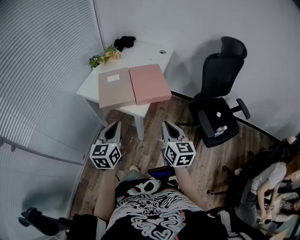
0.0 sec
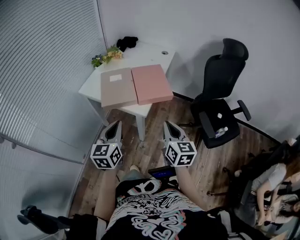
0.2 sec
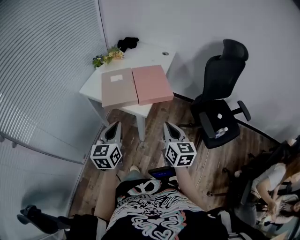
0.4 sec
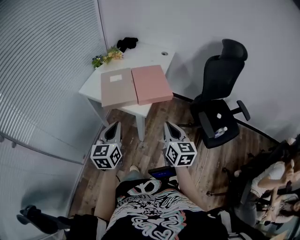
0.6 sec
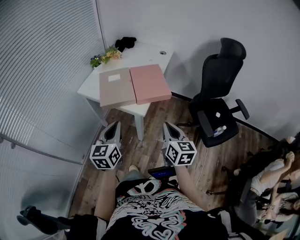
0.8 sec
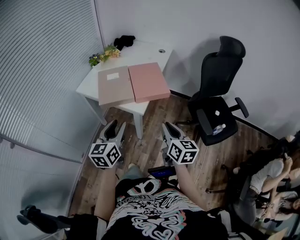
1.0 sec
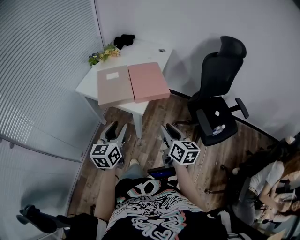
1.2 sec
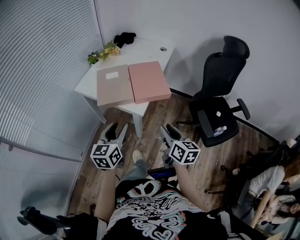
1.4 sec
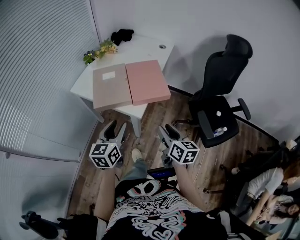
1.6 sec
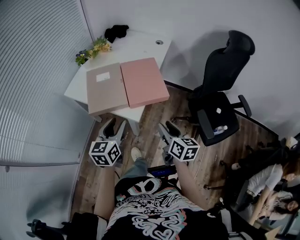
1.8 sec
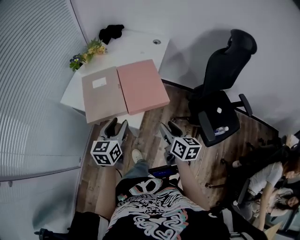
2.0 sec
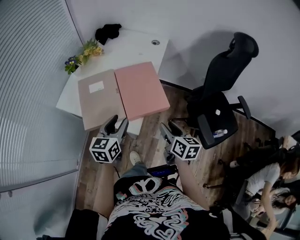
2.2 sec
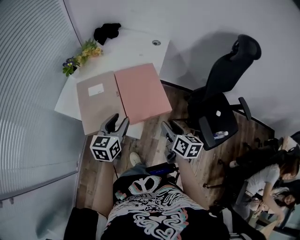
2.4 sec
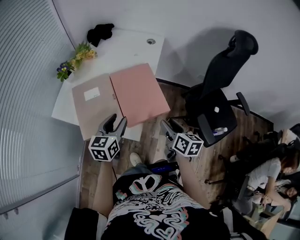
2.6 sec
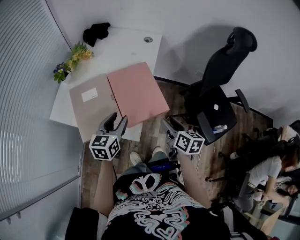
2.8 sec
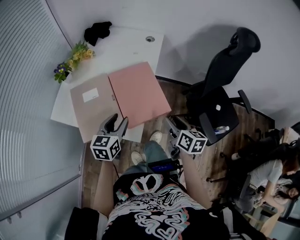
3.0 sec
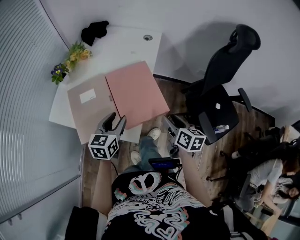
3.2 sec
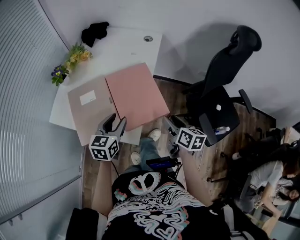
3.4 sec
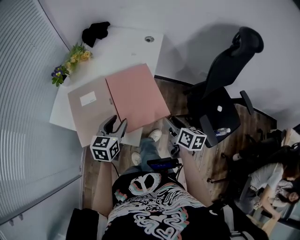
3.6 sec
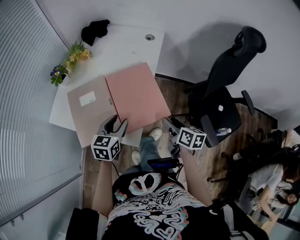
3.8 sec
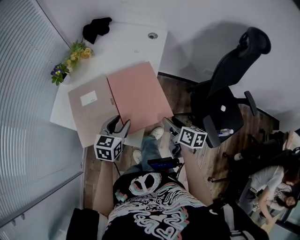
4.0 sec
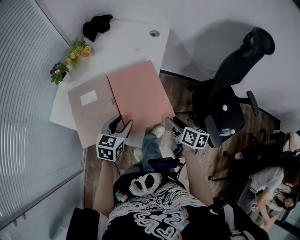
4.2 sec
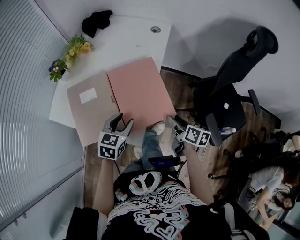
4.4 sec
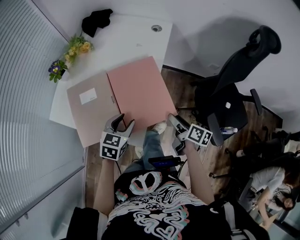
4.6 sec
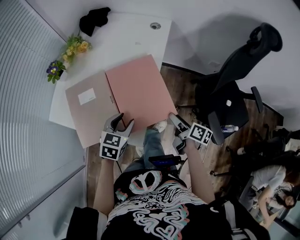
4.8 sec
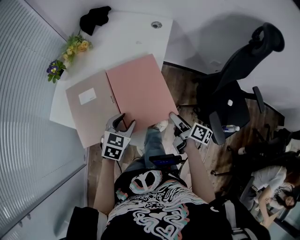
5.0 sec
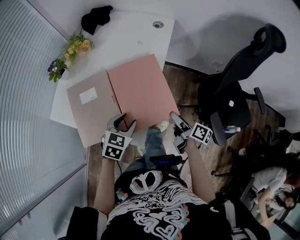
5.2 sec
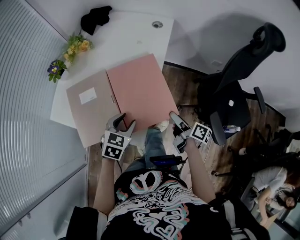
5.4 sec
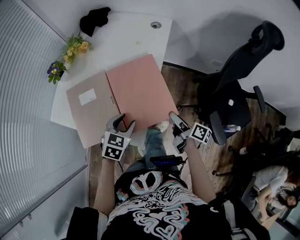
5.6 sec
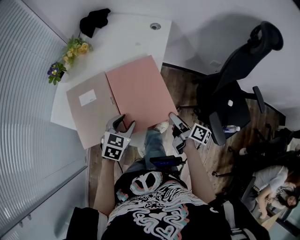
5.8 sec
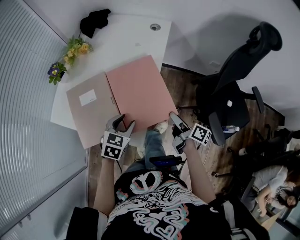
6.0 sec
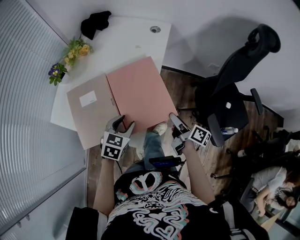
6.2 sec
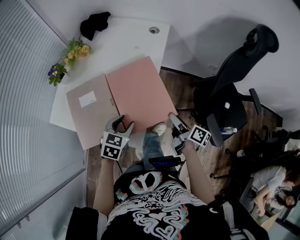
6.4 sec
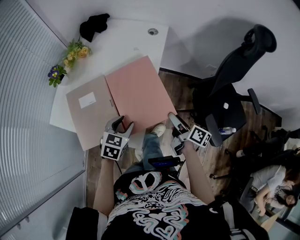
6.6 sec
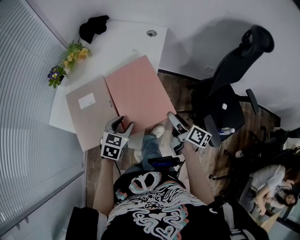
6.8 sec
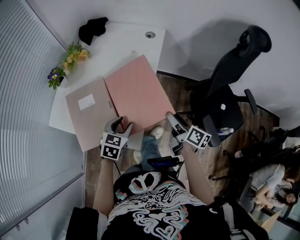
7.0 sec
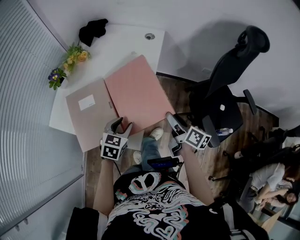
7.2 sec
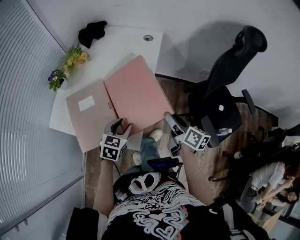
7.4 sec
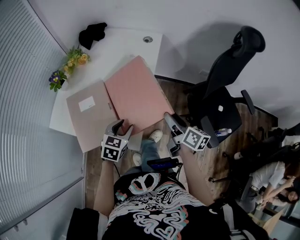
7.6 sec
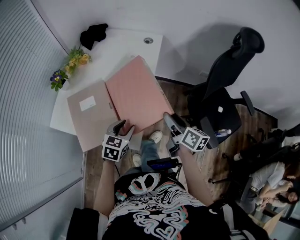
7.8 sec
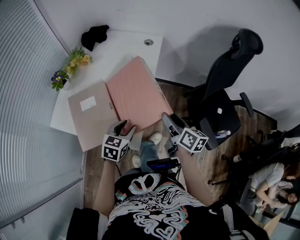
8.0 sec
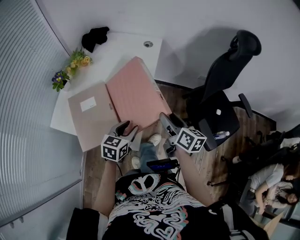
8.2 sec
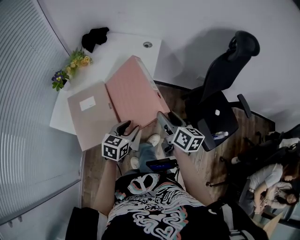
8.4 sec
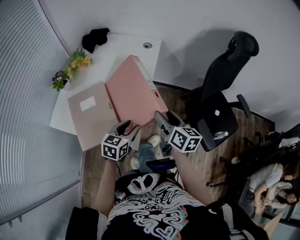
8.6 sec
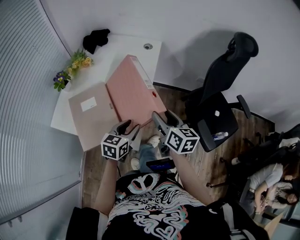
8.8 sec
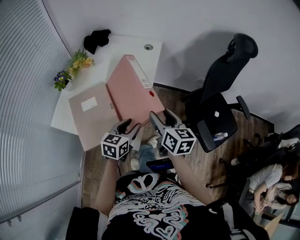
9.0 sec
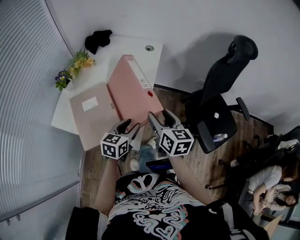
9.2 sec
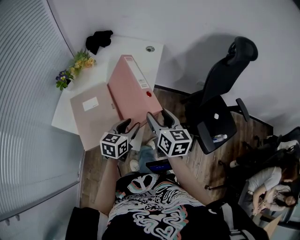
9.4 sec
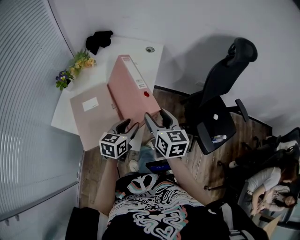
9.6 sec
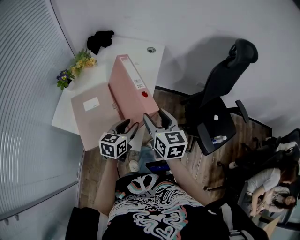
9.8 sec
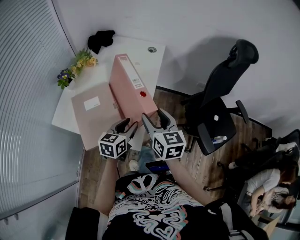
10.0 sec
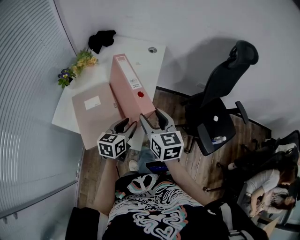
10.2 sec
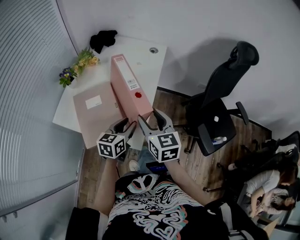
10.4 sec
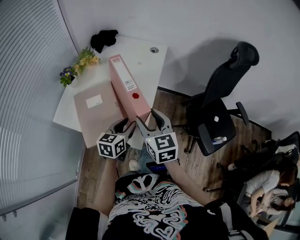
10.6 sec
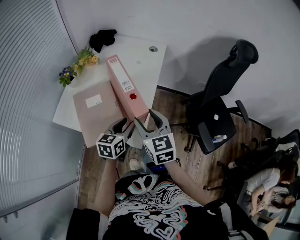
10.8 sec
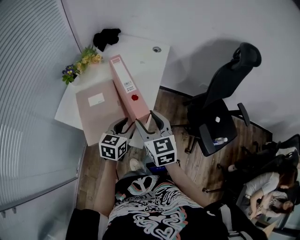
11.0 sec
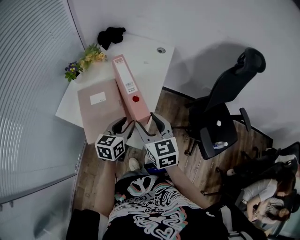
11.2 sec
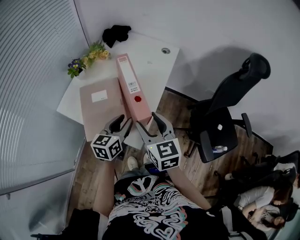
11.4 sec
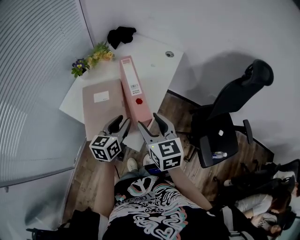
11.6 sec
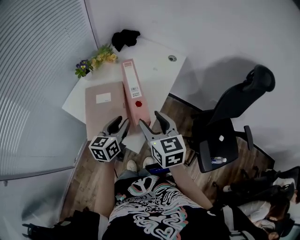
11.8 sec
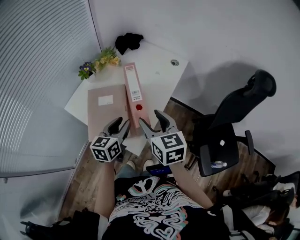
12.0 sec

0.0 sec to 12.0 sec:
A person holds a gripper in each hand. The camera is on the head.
0.0 sec to 1.6 sec: The right gripper goes about 5 cm downward, and opens up. Meanwhile the left gripper moves some 5 cm, and opens.
1.6 sec to 3.0 sec: Both grippers move forward, some 20 cm.
3.0 sec to 4.4 sec: The right gripper travels downward by about 10 cm. Meanwhile the left gripper is displaced downward by some 5 cm.
4.4 sec to 6.0 sec: The right gripper changes its angle by about 20 degrees.
6.0 sec to 7.6 sec: The right gripper moves upward, roughly 10 cm, and turns by roughly 20 degrees.
7.6 sec to 9.0 sec: The left gripper changes place by some 5 cm. The right gripper heads upward and to the left, covering about 10 cm, and changes its angle by about 30 degrees.
9.0 sec to 10.4 sec: The right gripper moves to the left, some 5 cm.
10.4 sec to 12.0 sec: The left gripper travels upward by about 5 cm, and rotates approximately 20 degrees. The right gripper ends up approximately 5 cm from where it was.

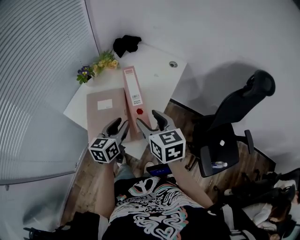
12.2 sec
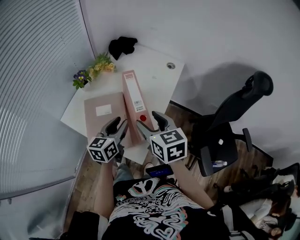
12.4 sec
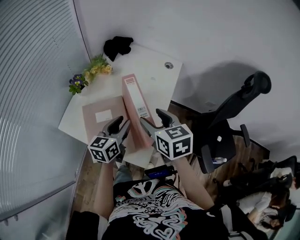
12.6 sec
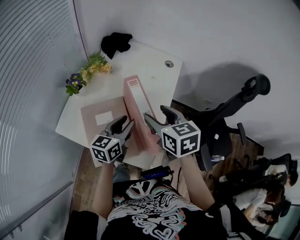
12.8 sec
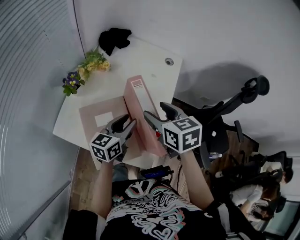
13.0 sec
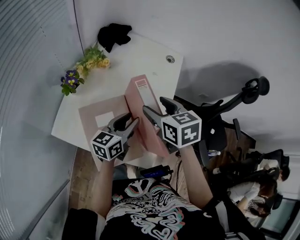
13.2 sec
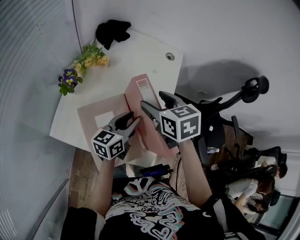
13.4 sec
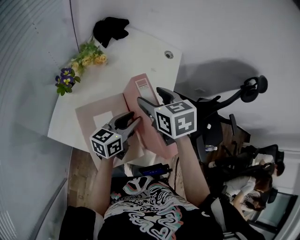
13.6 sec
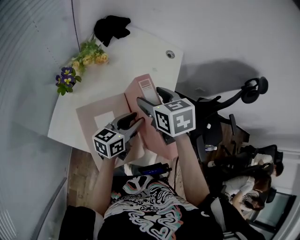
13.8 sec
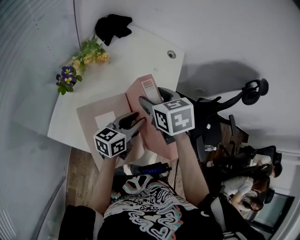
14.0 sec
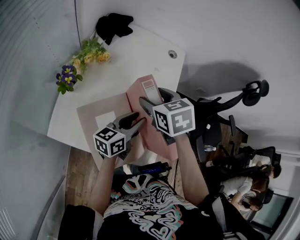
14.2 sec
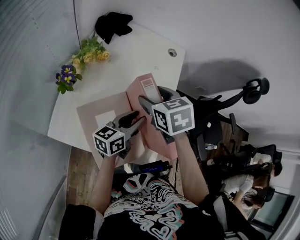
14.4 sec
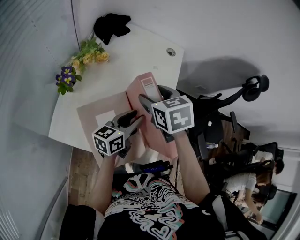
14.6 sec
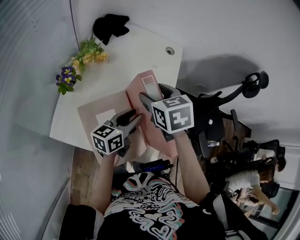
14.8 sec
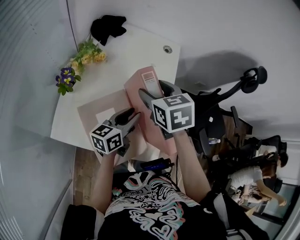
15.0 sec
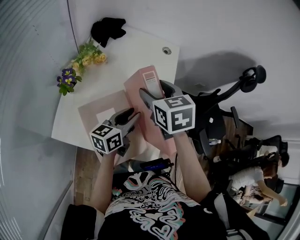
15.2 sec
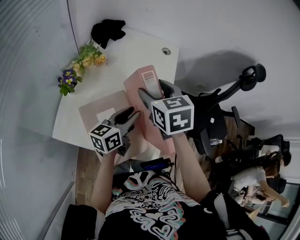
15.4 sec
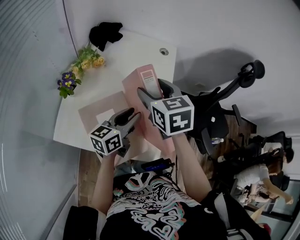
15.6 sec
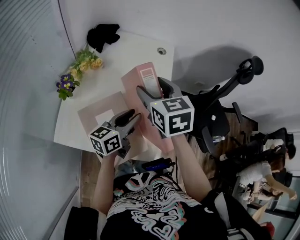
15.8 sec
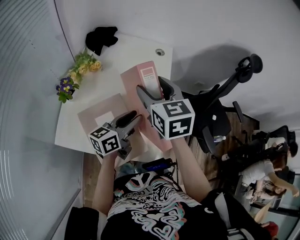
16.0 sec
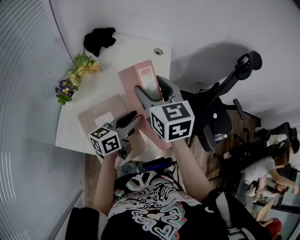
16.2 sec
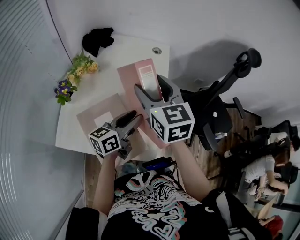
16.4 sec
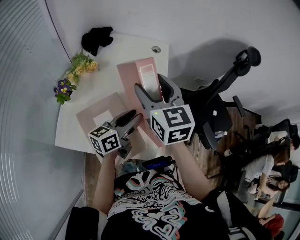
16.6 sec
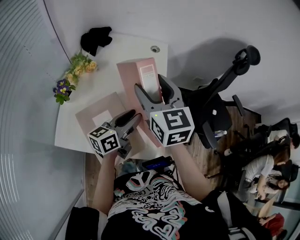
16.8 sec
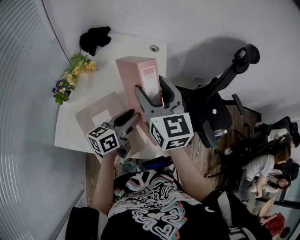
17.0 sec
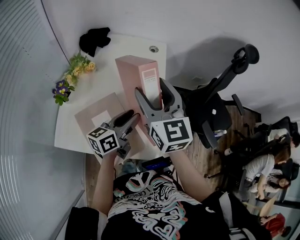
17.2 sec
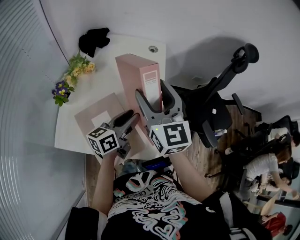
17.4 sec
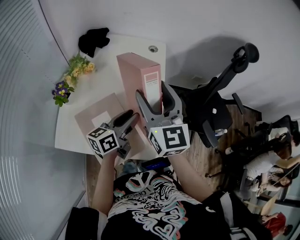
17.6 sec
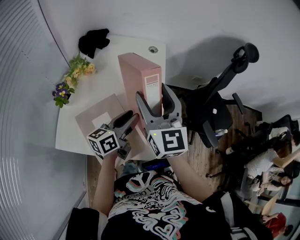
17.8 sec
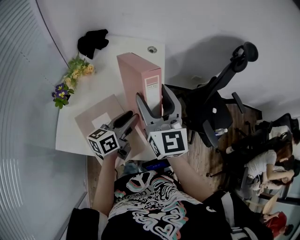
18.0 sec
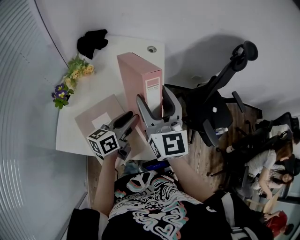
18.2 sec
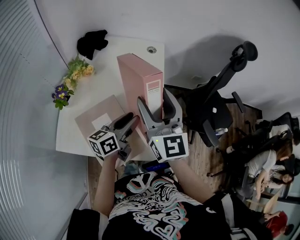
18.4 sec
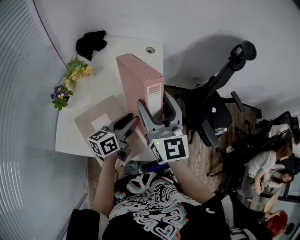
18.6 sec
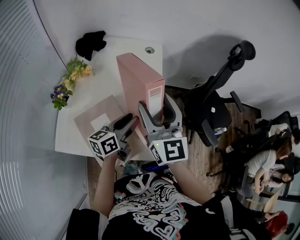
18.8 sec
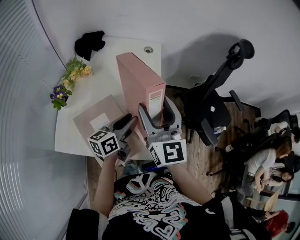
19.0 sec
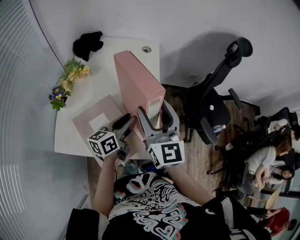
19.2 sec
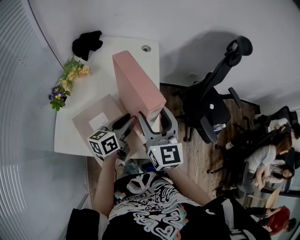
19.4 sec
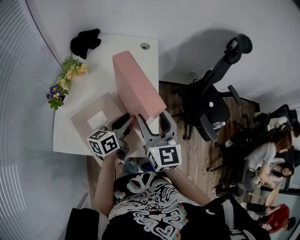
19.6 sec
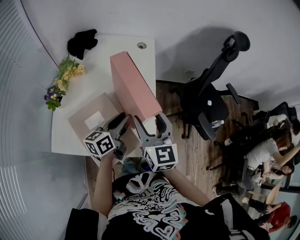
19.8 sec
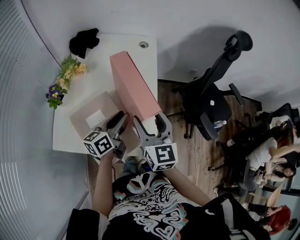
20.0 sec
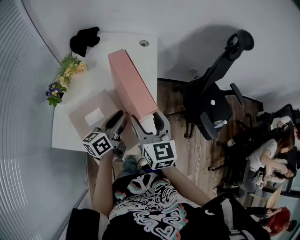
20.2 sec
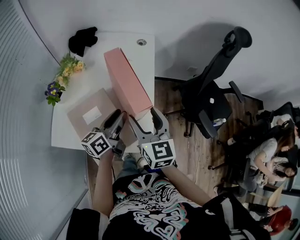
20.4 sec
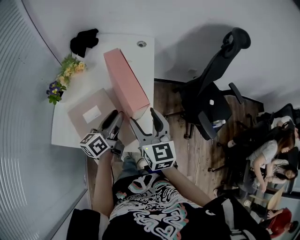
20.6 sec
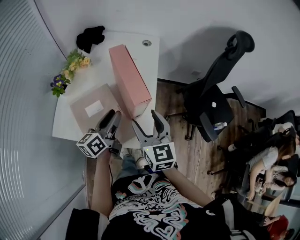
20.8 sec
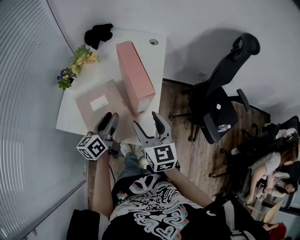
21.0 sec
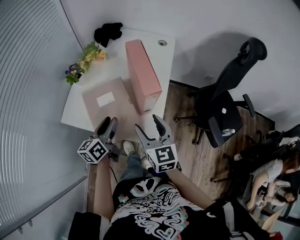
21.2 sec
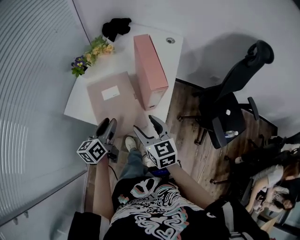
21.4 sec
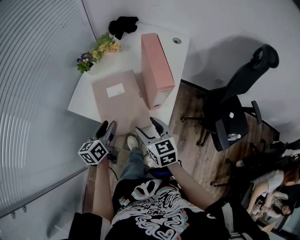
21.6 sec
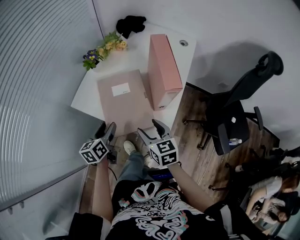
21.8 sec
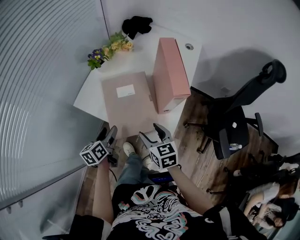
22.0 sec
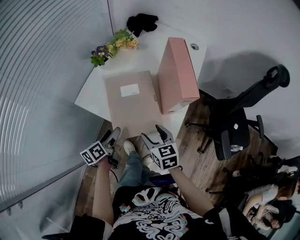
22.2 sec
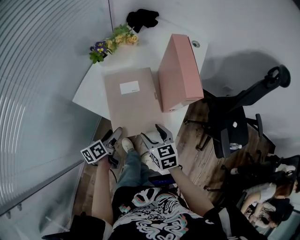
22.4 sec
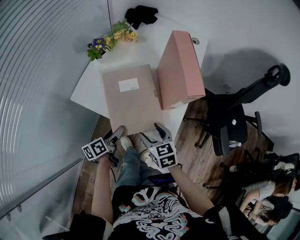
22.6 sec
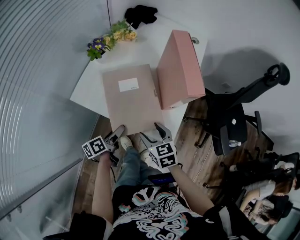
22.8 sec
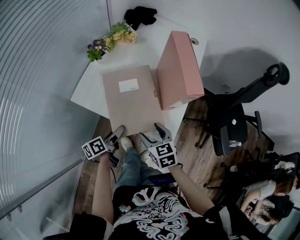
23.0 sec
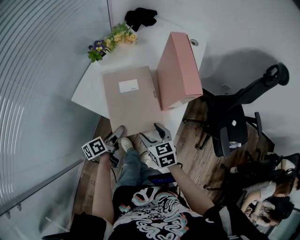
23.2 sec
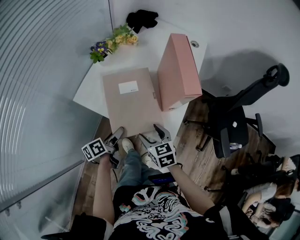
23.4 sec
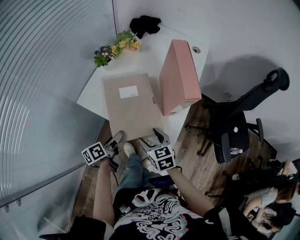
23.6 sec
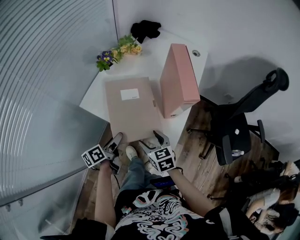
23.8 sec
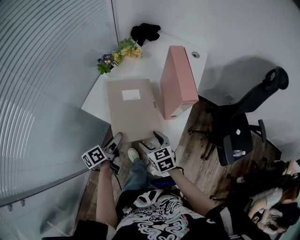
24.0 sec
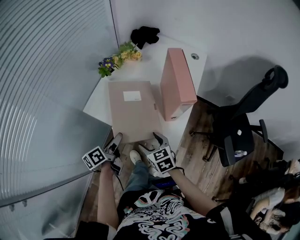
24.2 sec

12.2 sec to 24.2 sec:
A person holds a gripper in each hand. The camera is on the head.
12.2 sec to 13.8 sec: The left gripper goes about 10 cm forward, and turns by approximately 30 degrees. Meanwhile the right gripper shifts some 20 cm forward and to the left, and turns by some 30 degrees.
13.8 sec to 15.2 sec: The grippers make only small movements.
15.2 sec to 16.6 sec: The right gripper goes some 5 cm upward, and swivels roughly 20 degrees.
16.6 sec to 18.2 sec: The right gripper changes place by about 5 cm.
18.2 sec to 19.8 sec: The right gripper heads downward and backward, covering about 10 cm.
19.8 sec to 21.2 sec: The left gripper travels backward and to the left by some 15 cm, and rotates approximately 30 degrees. Meanwhile the right gripper heads backward, covering approximately 10 cm.
21.2 sec to 22.6 sec: The left gripper shifts some 20 cm downward, to the left and backward, changes its angle by about 30 degrees, and opens its fingers. Meanwhile the right gripper moves downward and to the left, roughly 15 cm, and swivels some 30 degrees.
22.6 sec to 24.2 sec: The left gripper shifts about 10 cm upward.
